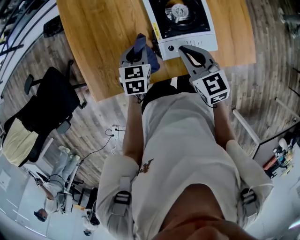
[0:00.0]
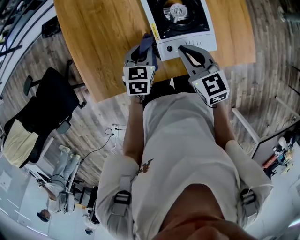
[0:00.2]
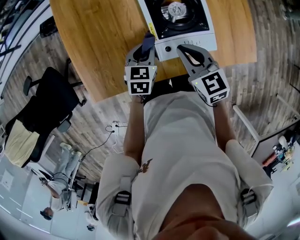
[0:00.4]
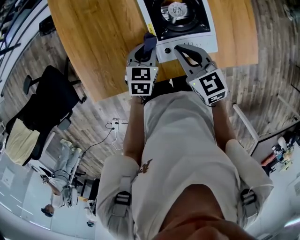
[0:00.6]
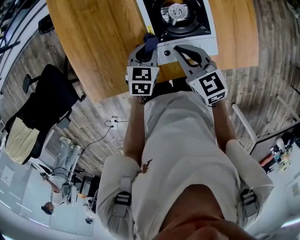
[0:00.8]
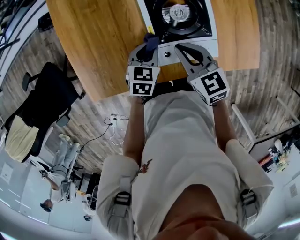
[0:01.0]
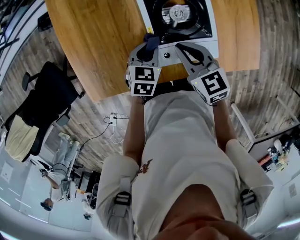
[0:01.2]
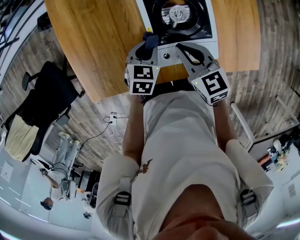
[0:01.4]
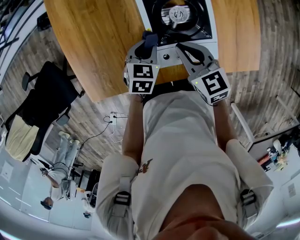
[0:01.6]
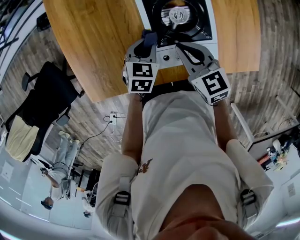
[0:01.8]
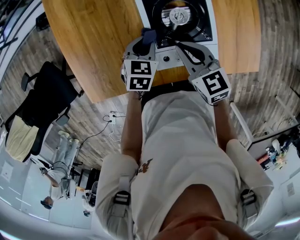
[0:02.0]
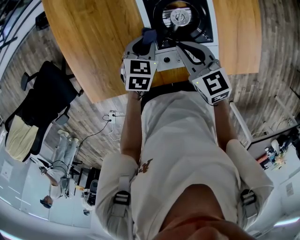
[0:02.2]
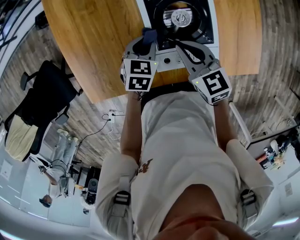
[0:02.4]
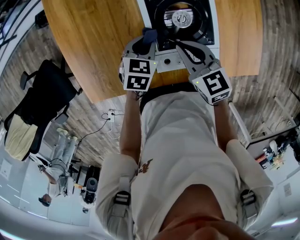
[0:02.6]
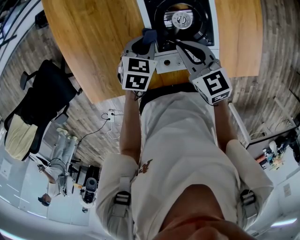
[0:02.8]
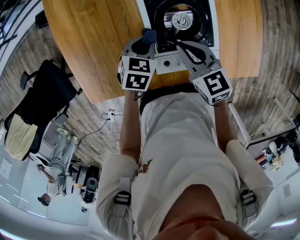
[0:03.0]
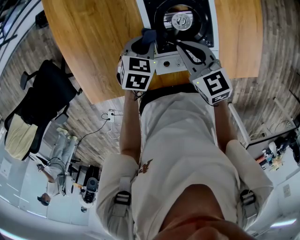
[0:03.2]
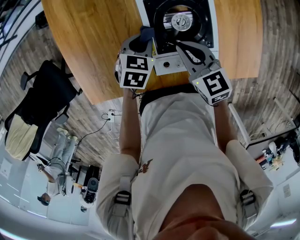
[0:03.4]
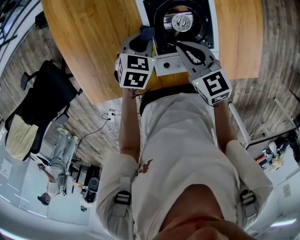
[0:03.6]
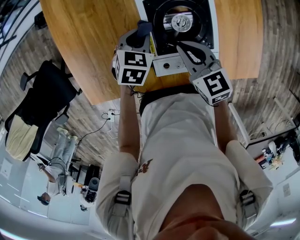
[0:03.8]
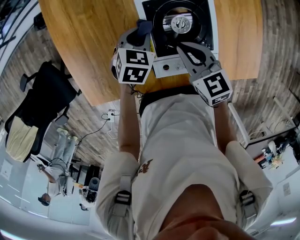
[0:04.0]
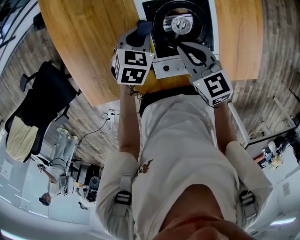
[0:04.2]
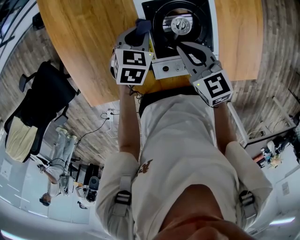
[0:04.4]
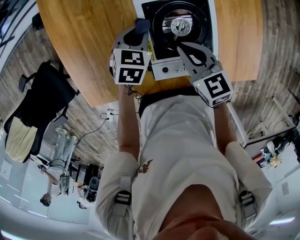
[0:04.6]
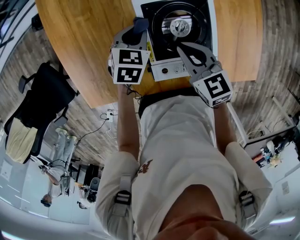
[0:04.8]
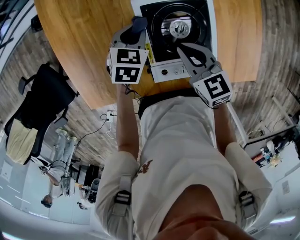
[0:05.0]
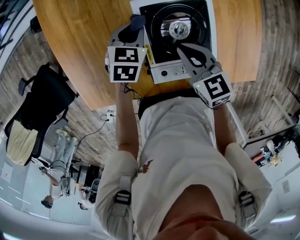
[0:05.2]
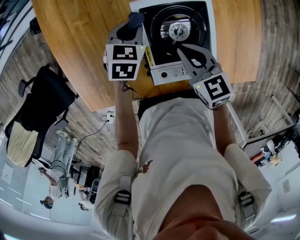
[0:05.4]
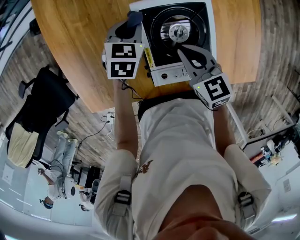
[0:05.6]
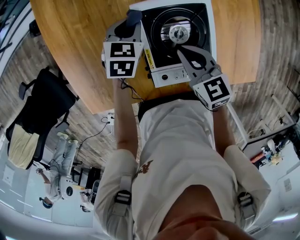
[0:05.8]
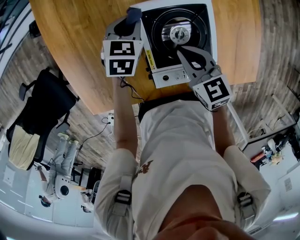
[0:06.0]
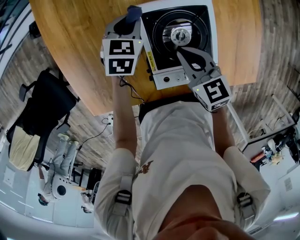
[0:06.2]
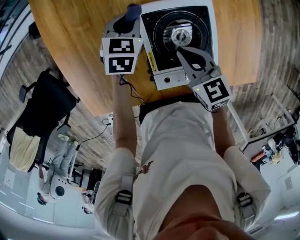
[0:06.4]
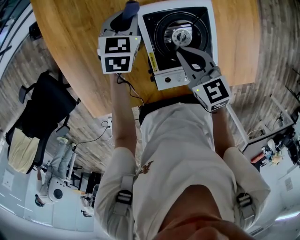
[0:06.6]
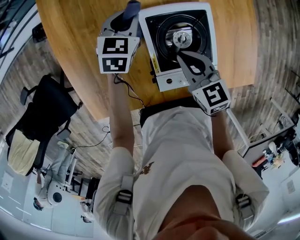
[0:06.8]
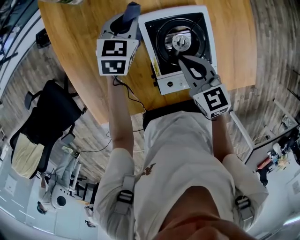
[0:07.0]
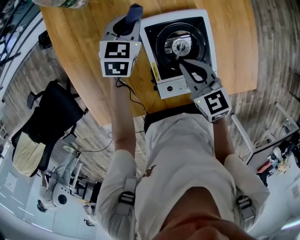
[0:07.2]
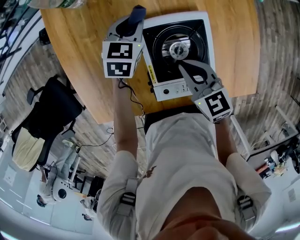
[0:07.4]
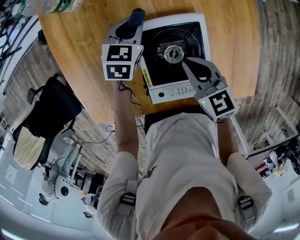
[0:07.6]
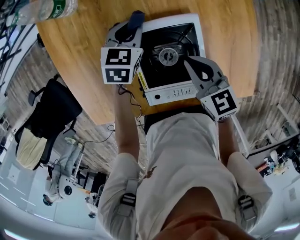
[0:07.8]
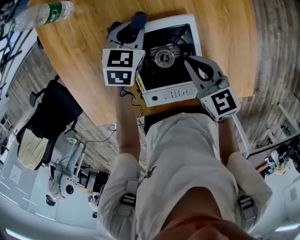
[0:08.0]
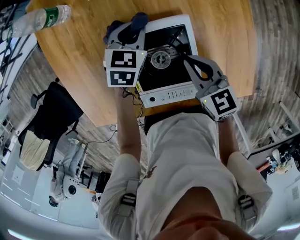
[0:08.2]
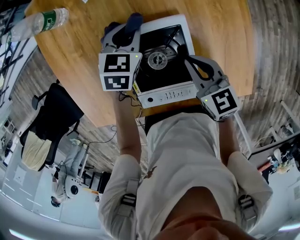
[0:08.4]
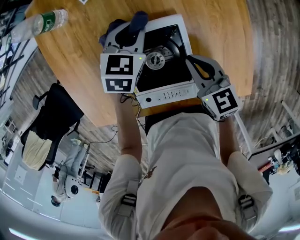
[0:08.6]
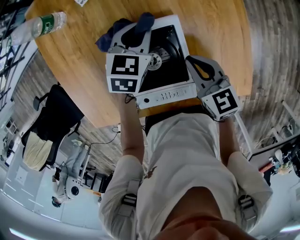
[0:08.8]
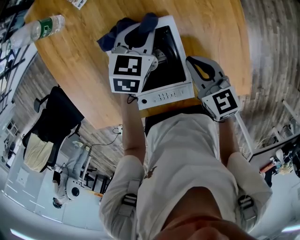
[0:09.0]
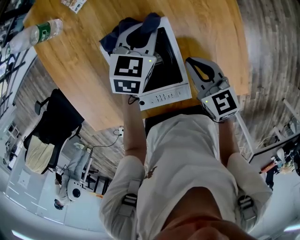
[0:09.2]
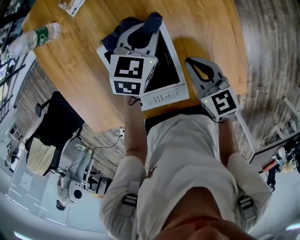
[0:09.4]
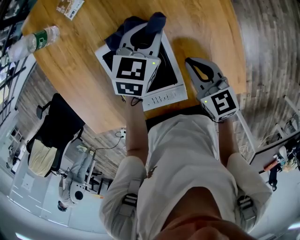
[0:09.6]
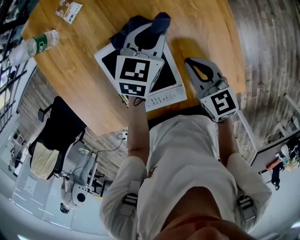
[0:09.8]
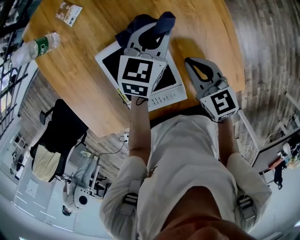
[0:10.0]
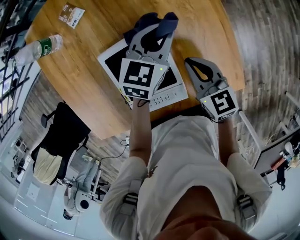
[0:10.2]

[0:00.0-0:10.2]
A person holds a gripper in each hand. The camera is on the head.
0:00.0 to 0:01.4: The left gripper shifts some 5 cm to the right, while the right gripper changes place by about 5 cm.
0:01.4 to 0:03.0: There are only small adjustments of the grippers.
0:03.0 to 0:04.4: The left gripper heads forward, covering roughly 5 cm.
0:04.4 to 0:05.8: The left gripper shifts about 5 cm forward.
0:05.8 to 0:07.2: The left gripper heads forward and upward, covering roughly 10 cm.
0:07.2 to 0:08.8: The grippers both shift to the right by approximately 15 cm.
0:08.8 to 0:10.2: The left gripper goes approximately 15 cm to the right and upward, and rotates roughly 20 degrees, while the right gripper travels to the right by roughly 5 cm.

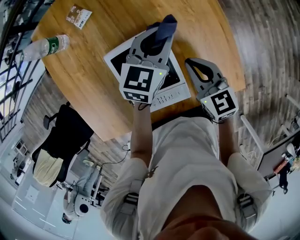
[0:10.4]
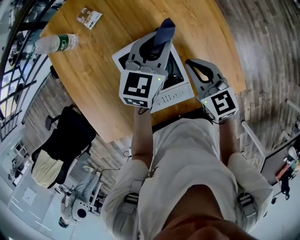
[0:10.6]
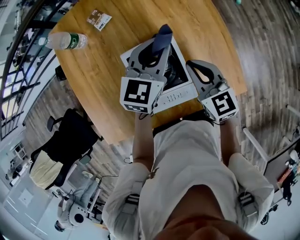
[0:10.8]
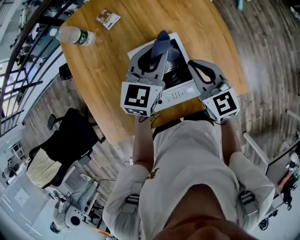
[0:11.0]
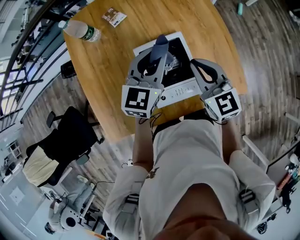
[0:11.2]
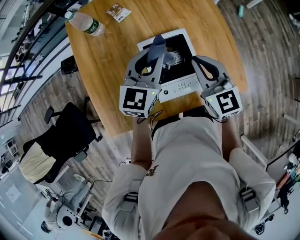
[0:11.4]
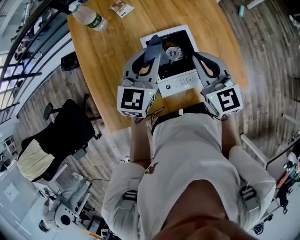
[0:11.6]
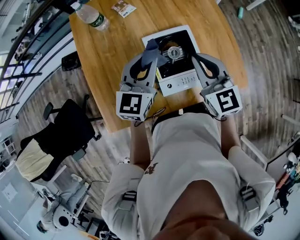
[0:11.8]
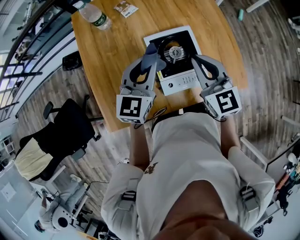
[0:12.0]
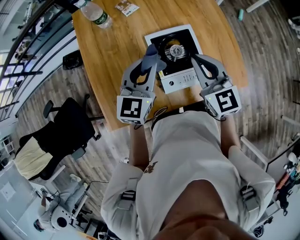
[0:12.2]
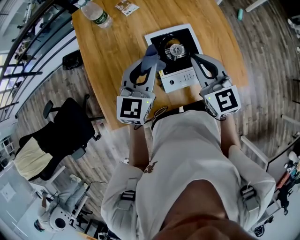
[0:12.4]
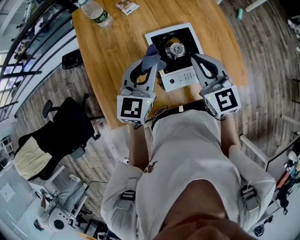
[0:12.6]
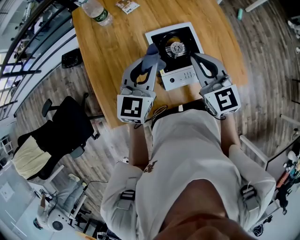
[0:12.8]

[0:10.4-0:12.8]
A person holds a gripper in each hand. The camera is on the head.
0:10.4 to 0:11.6: The left gripper travels to the left, backward and upward by roughly 25 cm, while the right gripper goes approximately 20 cm upward, to the left and backward, and swivels approximately 20 degrees.
0:11.6 to 0:12.8: The left gripper goes roughly 5 cm backward. The right gripper ends up roughly 5 cm from where it was.

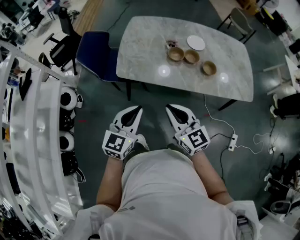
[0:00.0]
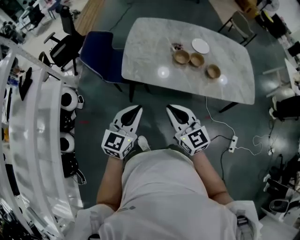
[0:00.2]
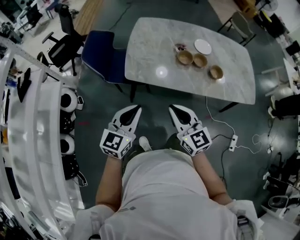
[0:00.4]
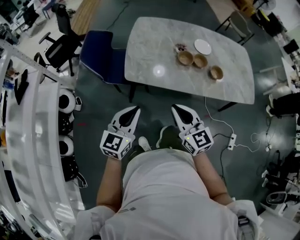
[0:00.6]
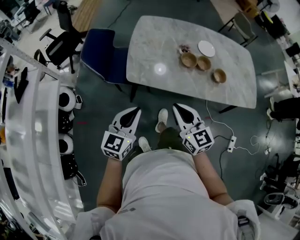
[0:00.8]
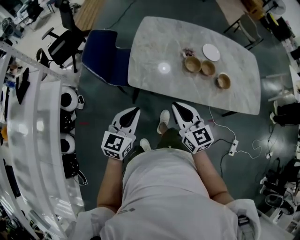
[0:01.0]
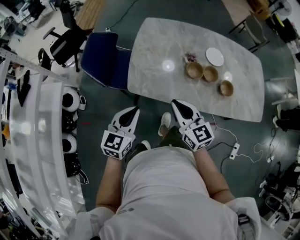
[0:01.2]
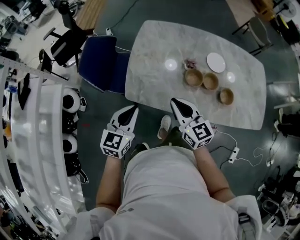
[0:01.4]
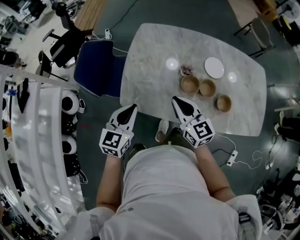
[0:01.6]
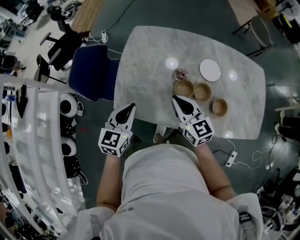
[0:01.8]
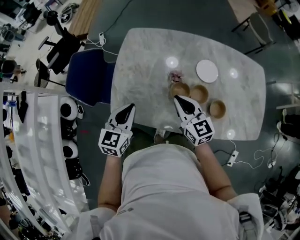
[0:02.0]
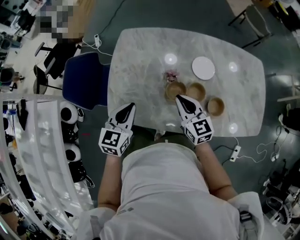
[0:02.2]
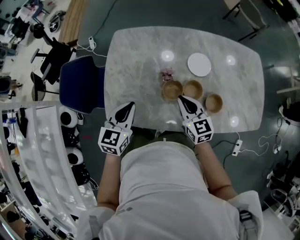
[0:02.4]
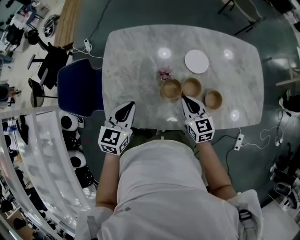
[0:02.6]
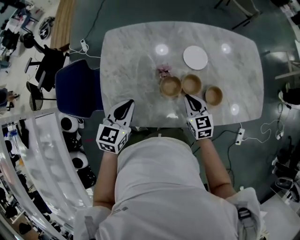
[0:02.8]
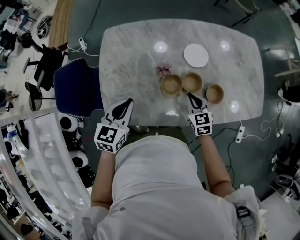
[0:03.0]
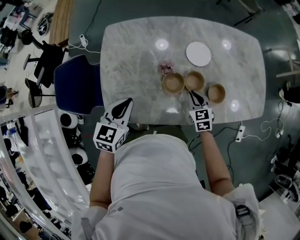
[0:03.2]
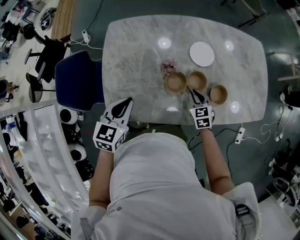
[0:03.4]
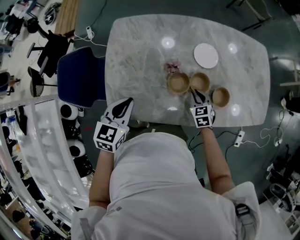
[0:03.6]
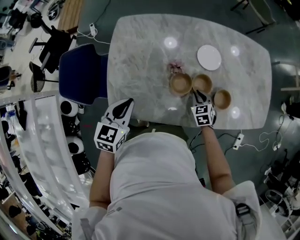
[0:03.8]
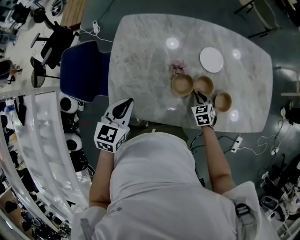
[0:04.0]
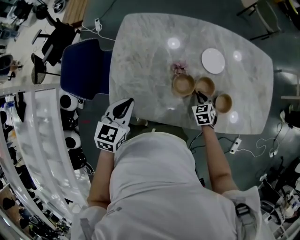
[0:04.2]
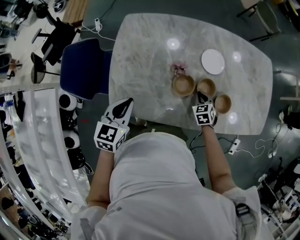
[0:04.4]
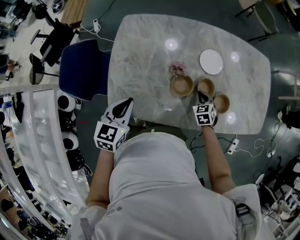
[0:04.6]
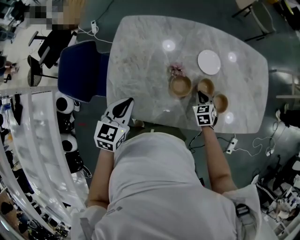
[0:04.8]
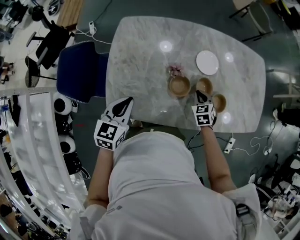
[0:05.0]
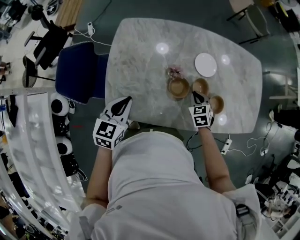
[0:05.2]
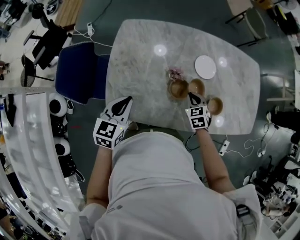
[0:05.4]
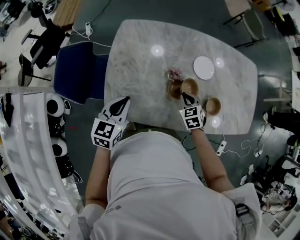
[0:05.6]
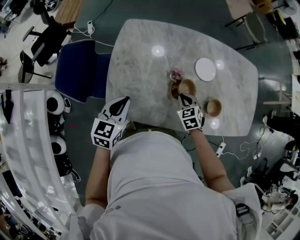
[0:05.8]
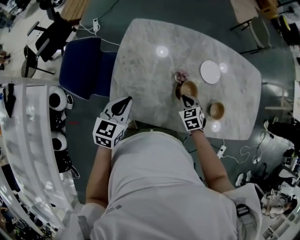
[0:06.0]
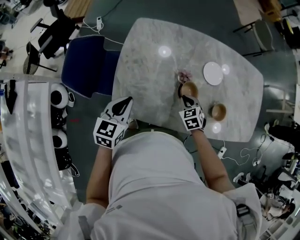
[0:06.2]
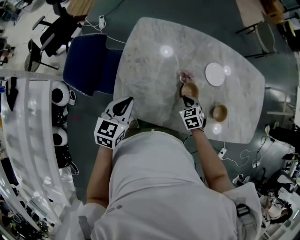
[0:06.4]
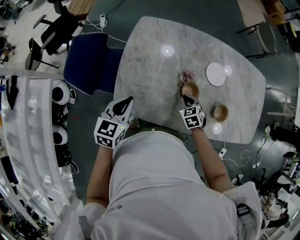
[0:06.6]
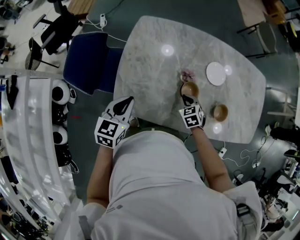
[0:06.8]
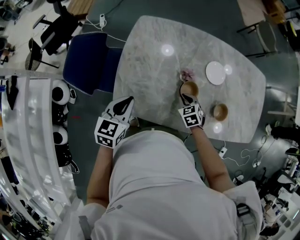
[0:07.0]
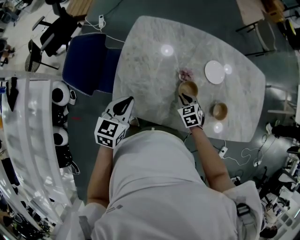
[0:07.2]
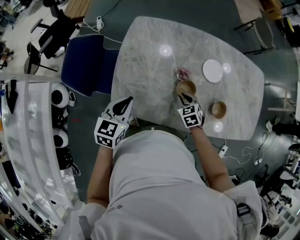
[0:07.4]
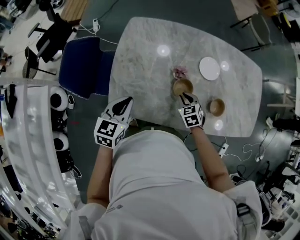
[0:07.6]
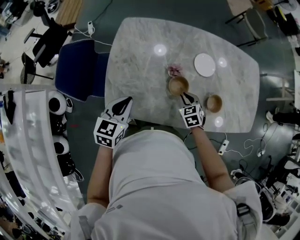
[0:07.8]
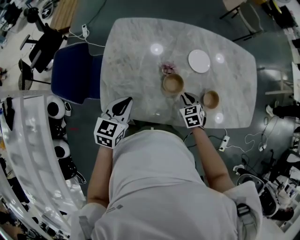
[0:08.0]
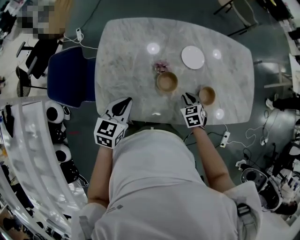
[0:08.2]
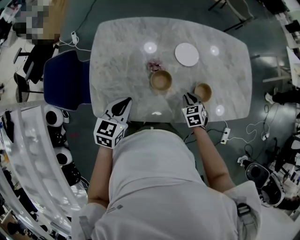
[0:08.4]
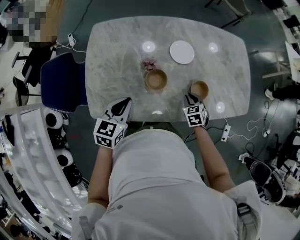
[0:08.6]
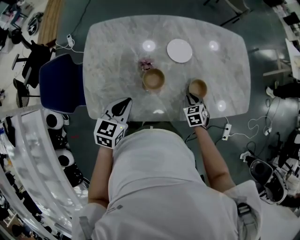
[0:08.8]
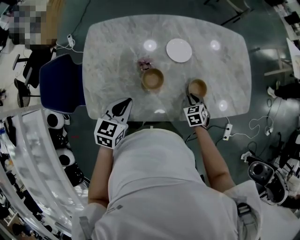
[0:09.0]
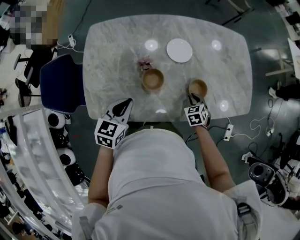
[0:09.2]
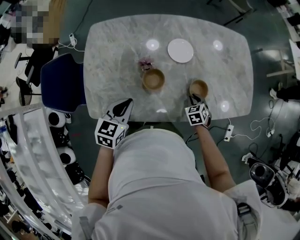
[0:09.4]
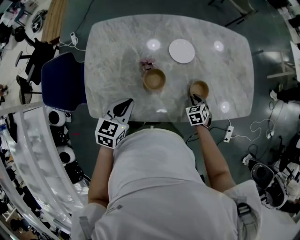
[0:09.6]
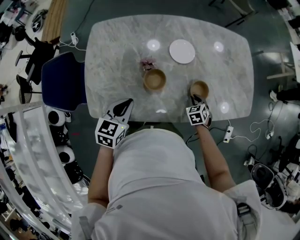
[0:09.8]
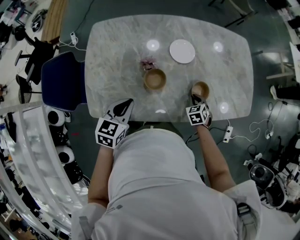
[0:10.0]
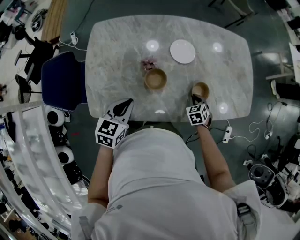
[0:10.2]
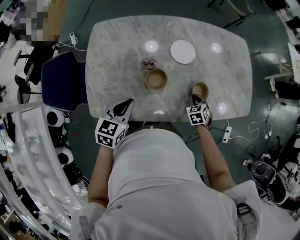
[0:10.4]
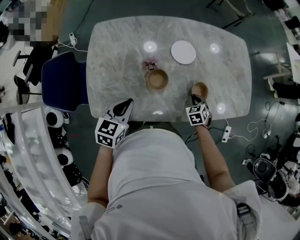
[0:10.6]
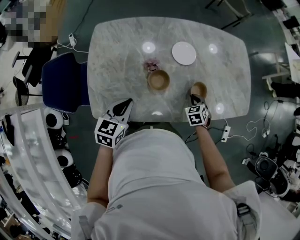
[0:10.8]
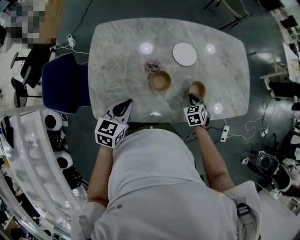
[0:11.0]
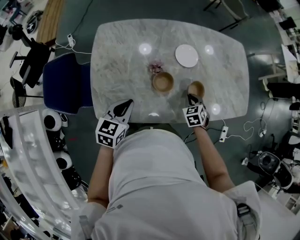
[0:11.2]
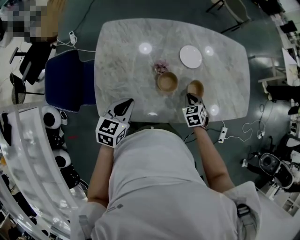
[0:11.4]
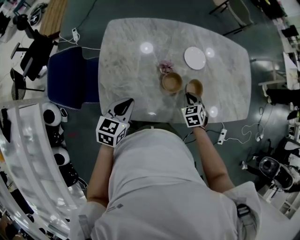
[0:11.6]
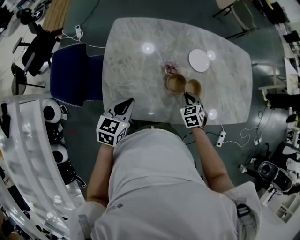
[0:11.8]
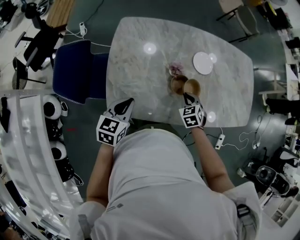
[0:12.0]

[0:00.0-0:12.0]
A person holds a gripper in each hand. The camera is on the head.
0:00.0 to 0:01.6: The two grippers go some 25 cm forward.
0:01.6 to 0:03.0: The left gripper goes roughly 15 cm forward and to the right. The right gripper moves to the right and downward, approximately 25 cm, and swivels some 30 degrees.
0:03.0 to 0:04.4: The right gripper moves downward, about 10 cm, and changes its angle by approximately 20 degrees. The left gripper shifts by approximately 5 cm.
0:04.4 to 0:06.0: The right gripper moves to the left and upward, about 10 cm.
0:06.0 to 0:07.6: The grippers stay close to where they were, moving slightly.
0:07.6 to 0:09.0: Both grippers move to the right, roughly 20 cm.
0:09.0 to 0:10.4: The grippers make only small movements.
0:10.4 to 0:12.0: The right gripper goes approximately 20 cm to the left, while the left gripper heads to the left, covering approximately 15 cm.
